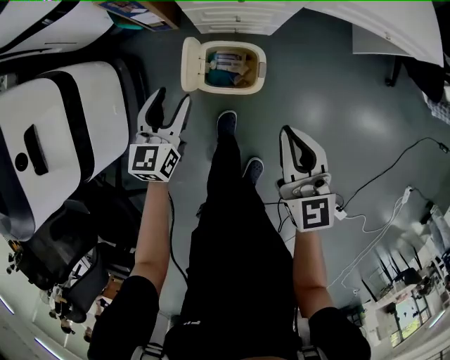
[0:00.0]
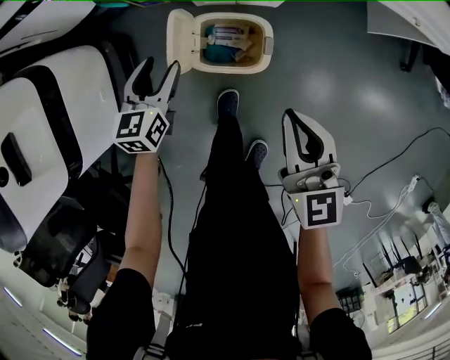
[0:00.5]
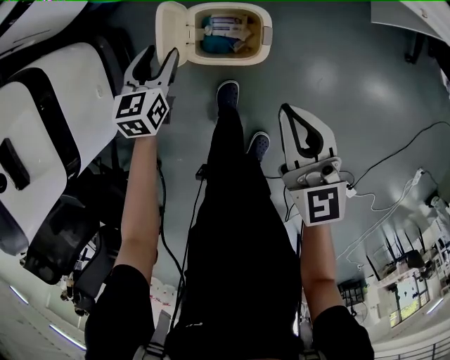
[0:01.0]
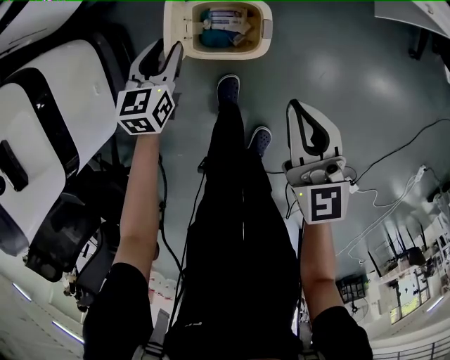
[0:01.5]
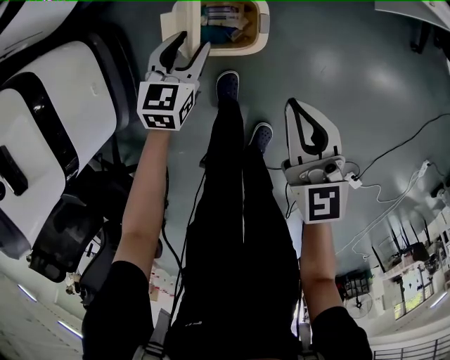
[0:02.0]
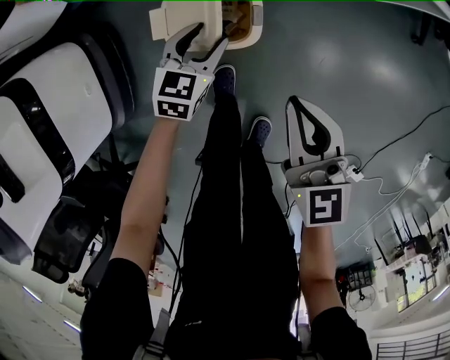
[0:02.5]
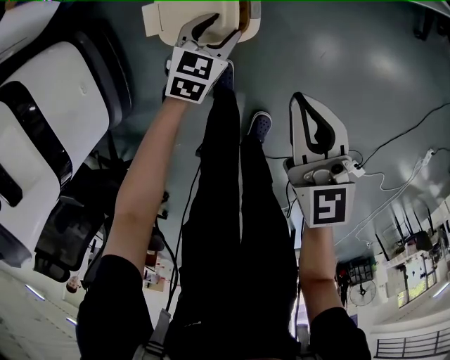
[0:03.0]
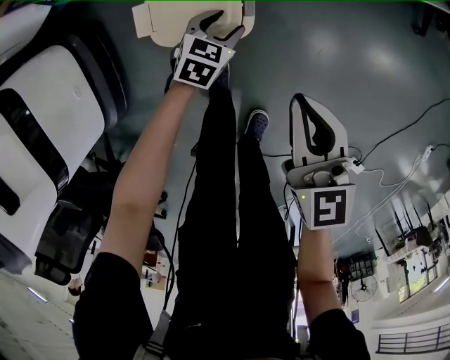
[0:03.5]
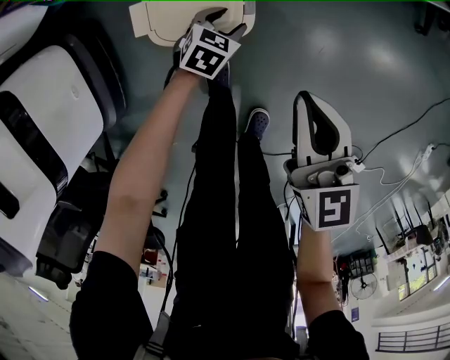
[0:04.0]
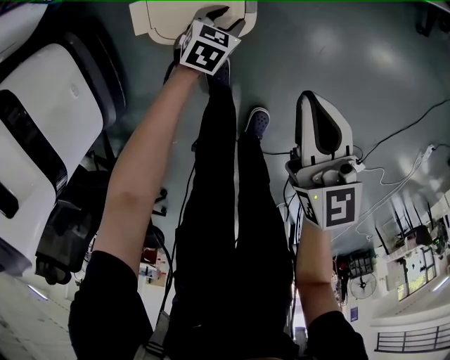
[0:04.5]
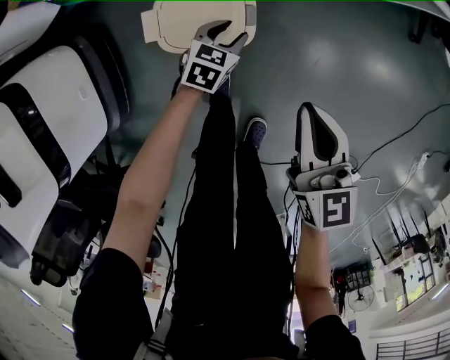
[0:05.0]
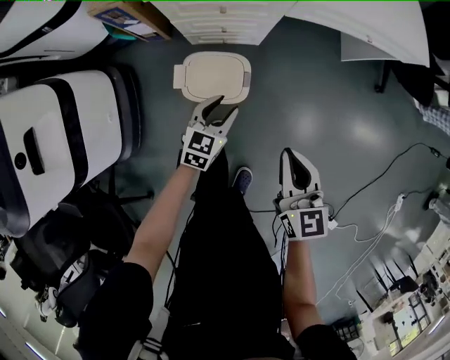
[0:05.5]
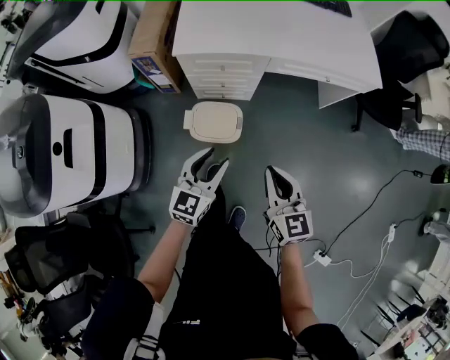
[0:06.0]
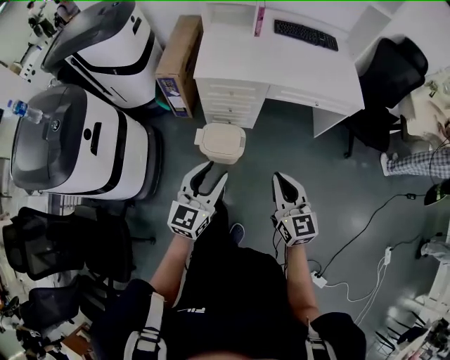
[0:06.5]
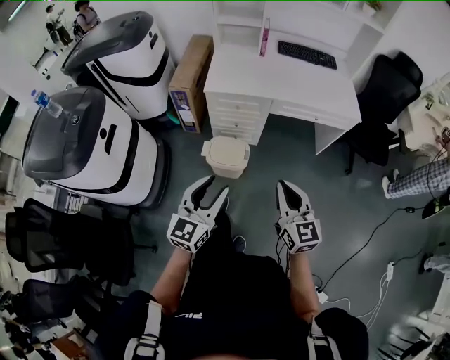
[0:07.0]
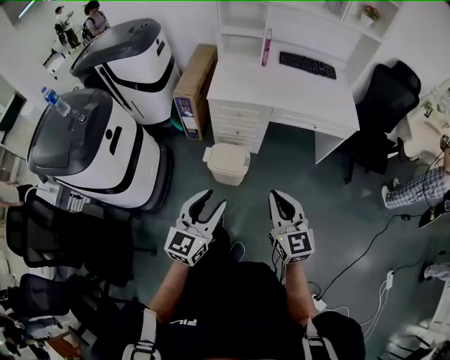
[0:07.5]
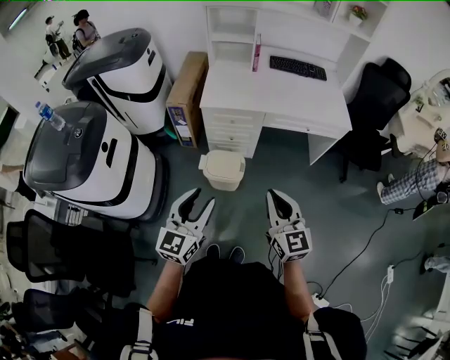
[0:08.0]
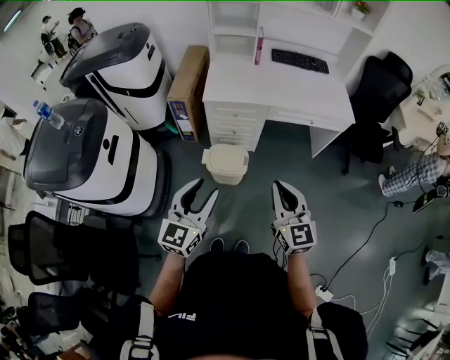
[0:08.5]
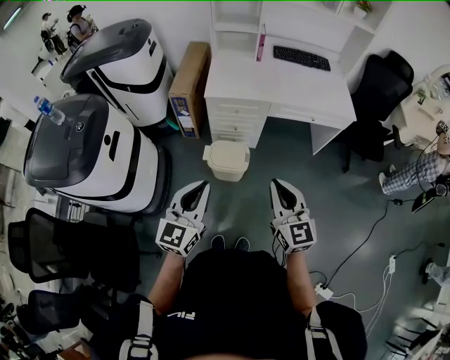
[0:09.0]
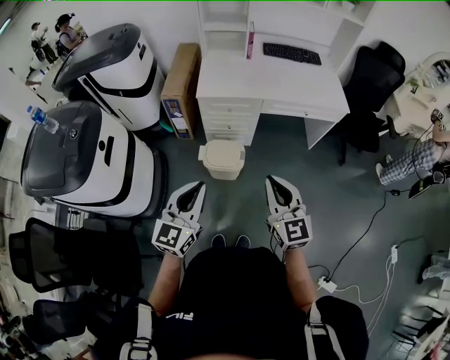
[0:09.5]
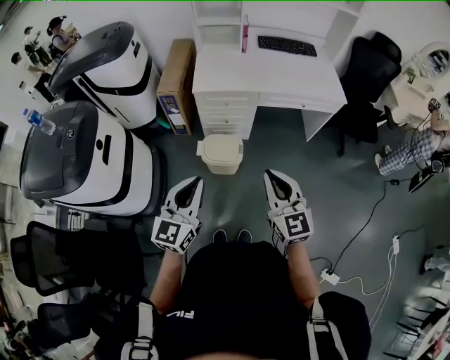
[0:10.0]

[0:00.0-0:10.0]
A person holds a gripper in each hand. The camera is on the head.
0:00.0 to 0:02.0: The right gripper heads downward, covering about 15 cm; the left gripper goes about 20 cm downward and to the right.
0:02.0 to 0:04.0: The left gripper goes roughly 20 cm downward and to the right, and rotates roughly 30 degrees; the right gripper changes place by some 5 cm.
0:04.0 to 0:06.0: The left gripper heads upward, covering about 60 cm, and tips its fingers upward by roughly 40 degrees. Meanwhile the right gripper heads upward, covering some 30 cm.
0:06.0 to 0:08.0: Both grippers travel together upward and backward, about 30 cm.
0:08.0 to 0:10.0: The left gripper closes.

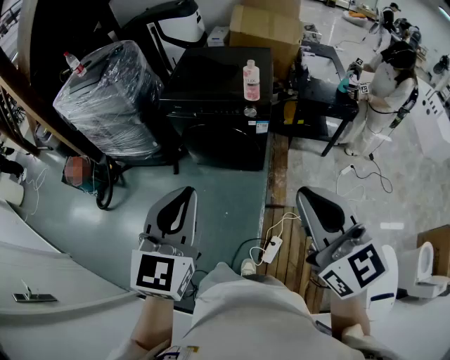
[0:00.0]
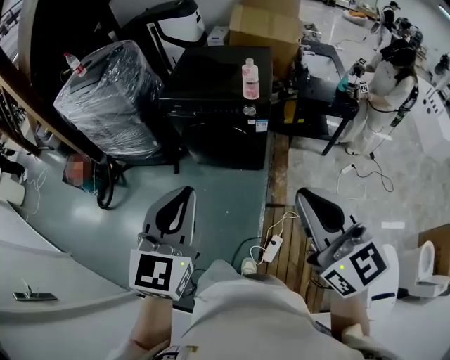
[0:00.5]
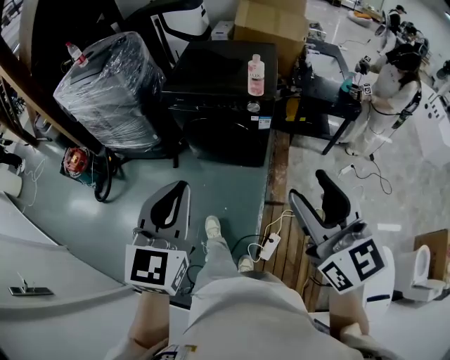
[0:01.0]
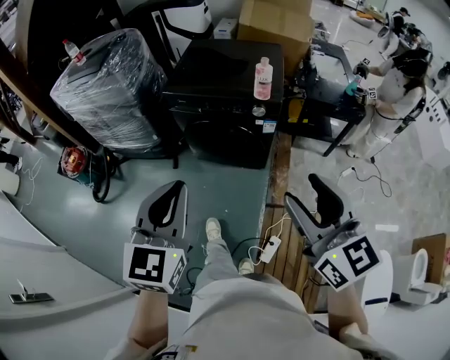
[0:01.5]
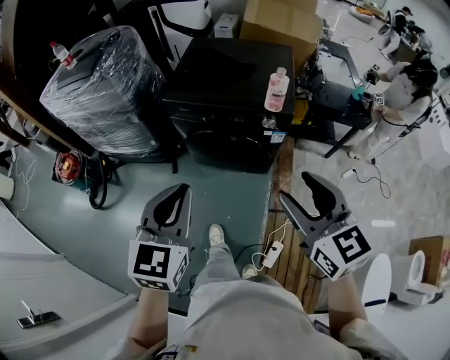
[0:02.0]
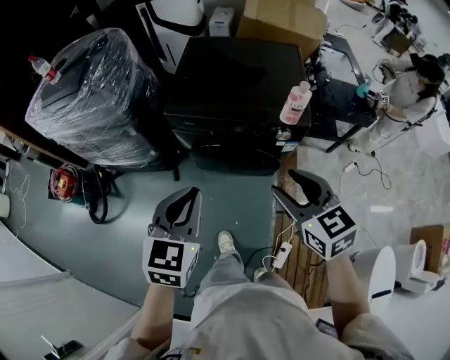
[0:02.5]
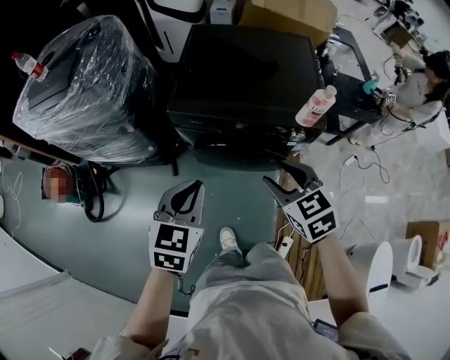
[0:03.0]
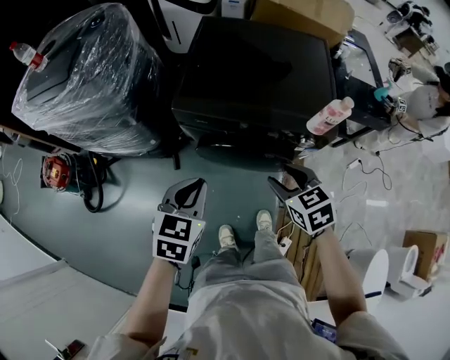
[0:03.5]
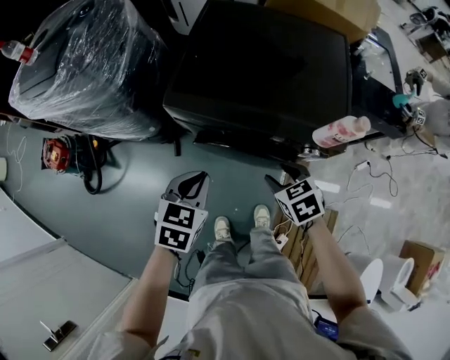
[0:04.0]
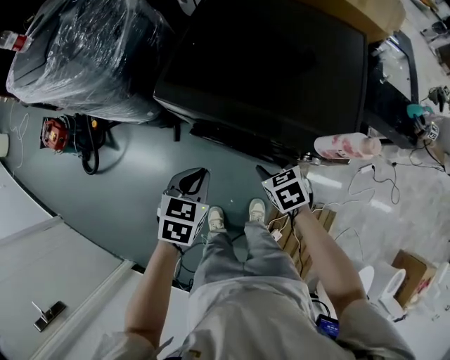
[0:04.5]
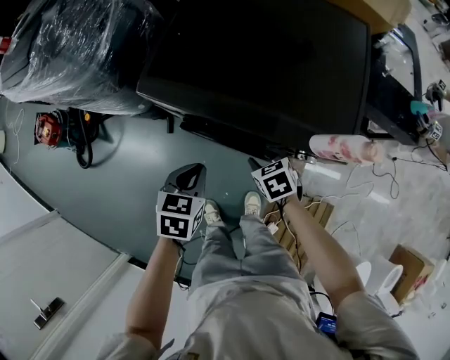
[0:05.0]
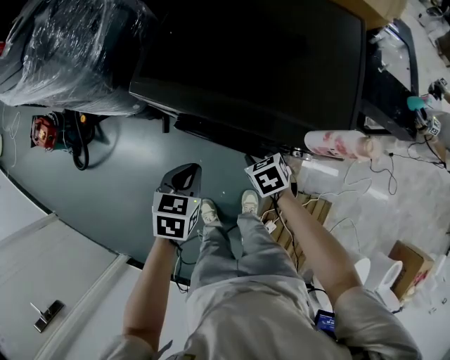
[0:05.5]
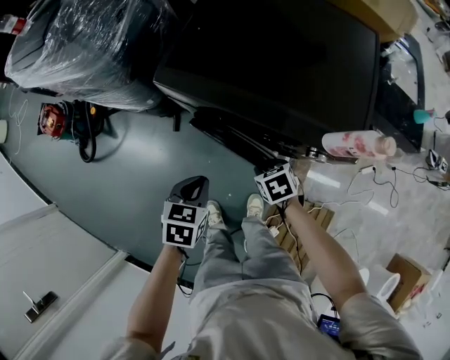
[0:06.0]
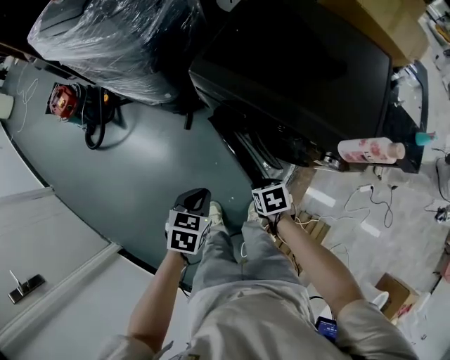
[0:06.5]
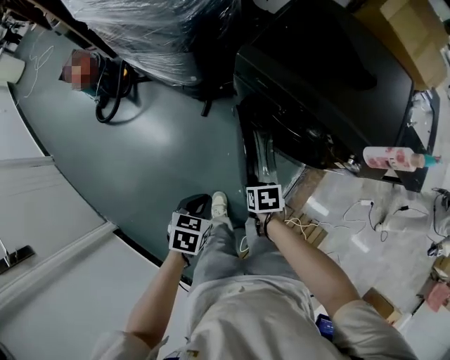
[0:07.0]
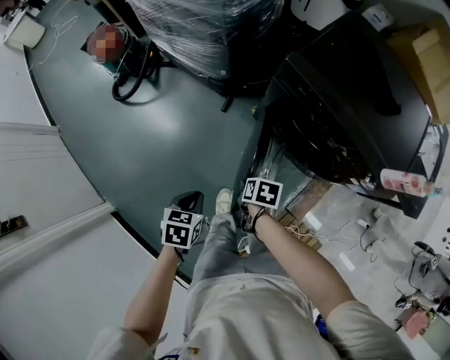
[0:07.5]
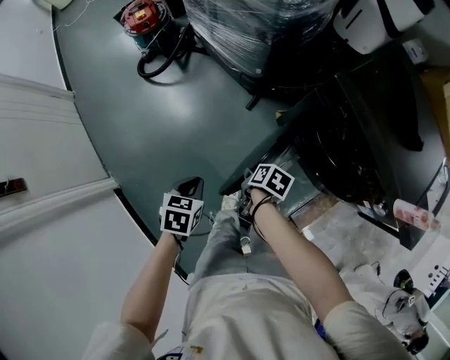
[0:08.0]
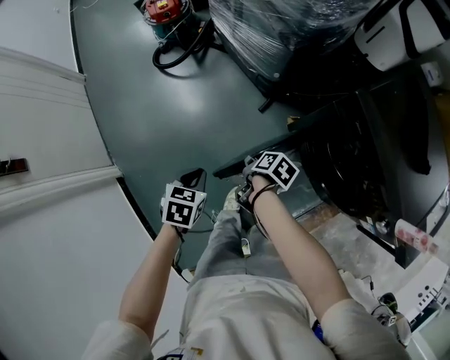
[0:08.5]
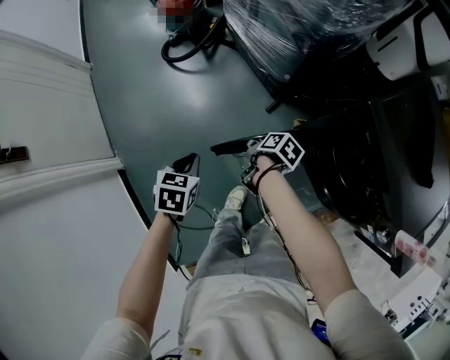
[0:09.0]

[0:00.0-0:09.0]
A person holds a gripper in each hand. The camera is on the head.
0:00.0 to 0:02.0: The left gripper shifts approximately 20 cm forward and to the left; the right gripper is displaced forward and downward by approximately 20 cm, and opens up.
0:02.0 to 0:04.5: The right gripper goes about 50 cm downward and forward, and points its fingers about 40 degrees further downward, while the left gripper goes some 40 cm forward and downward, and tips its fingers downward by roughly 30 degrees.
0:04.5 to 0:07.0: The right gripper is displaced to the left, backward and downward by approximately 25 cm, and rotates approximately 20 degrees. Meanwhile the left gripper is displaced backward, to the left and downward by approximately 25 cm, and changes its angle by some 20 degrees.
0:07.0 to 0:09.0: The left gripper shifts by roughly 30 cm, and swivels approximately 30 degrees; the right gripper changes place by approximately 30 cm, and rotates about 30 degrees.

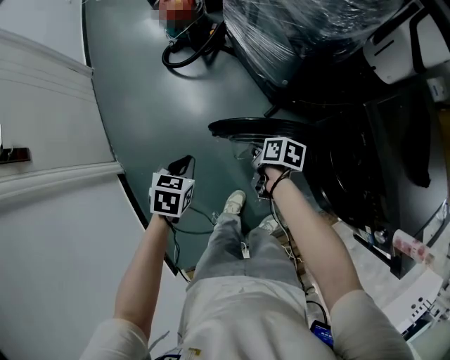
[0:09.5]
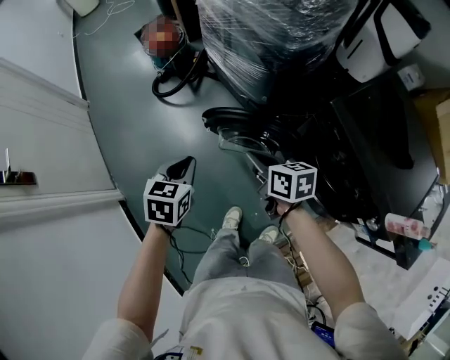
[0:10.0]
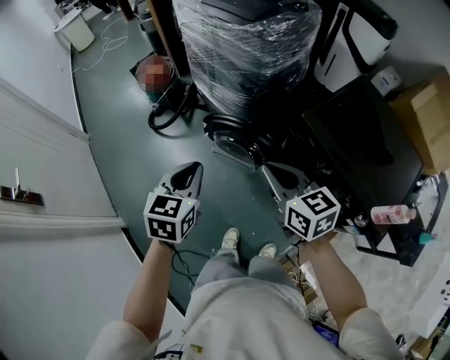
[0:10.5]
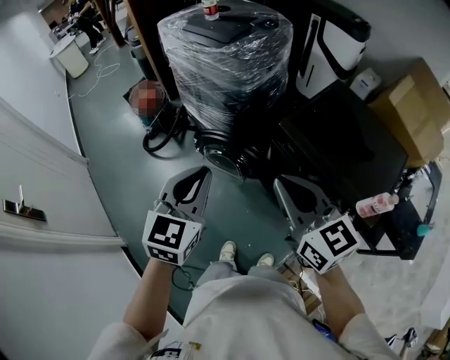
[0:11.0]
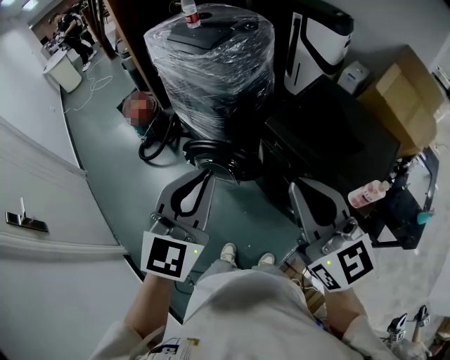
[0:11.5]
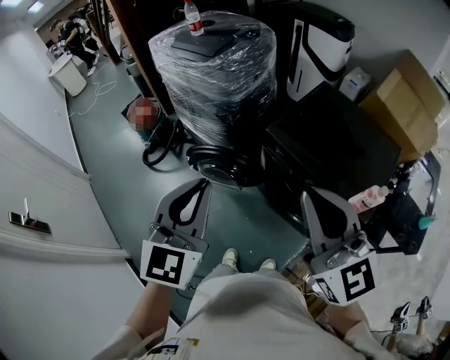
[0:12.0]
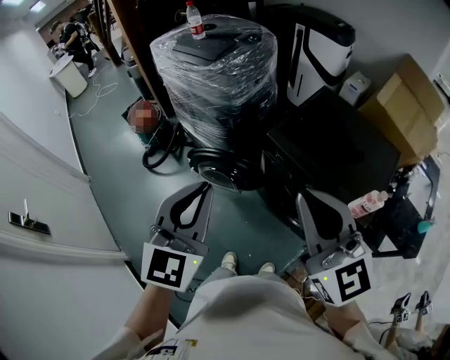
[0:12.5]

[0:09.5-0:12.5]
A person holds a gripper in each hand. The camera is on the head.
0:09.5 to 0:11.0: The right gripper heads upward, covering roughly 50 cm, and tilts its fingers approximately 40 degrees upward, while the left gripper travels upward and to the right by approximately 40 cm, and points its fingers about 40 degrees further upward.
0:11.0 to 0:12.5: Both grippers travel together upward, backward and to the right, roughly 10 cm. The right gripper changes its angle by approximately 20 degrees.

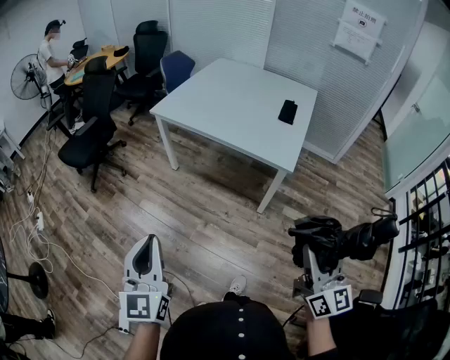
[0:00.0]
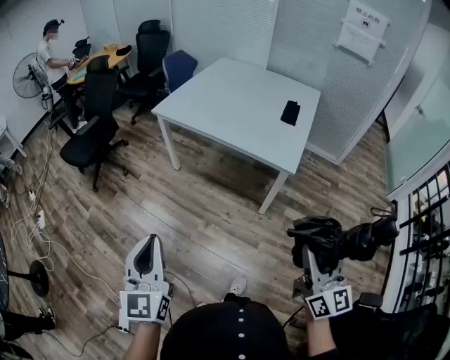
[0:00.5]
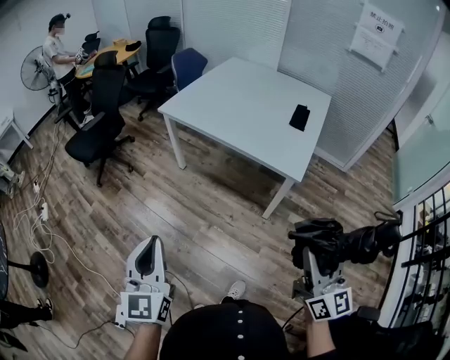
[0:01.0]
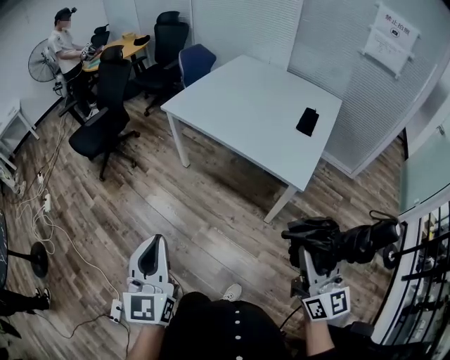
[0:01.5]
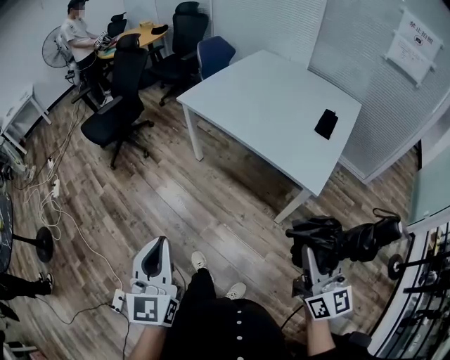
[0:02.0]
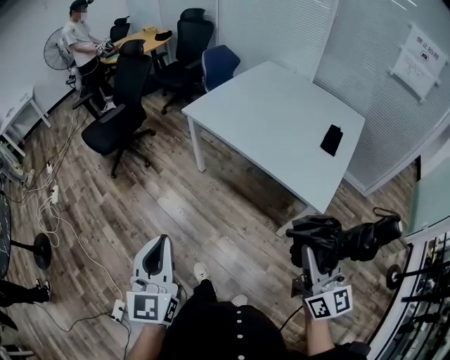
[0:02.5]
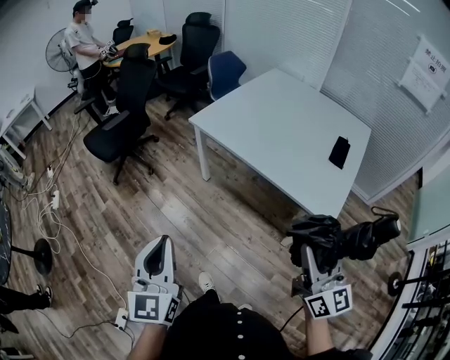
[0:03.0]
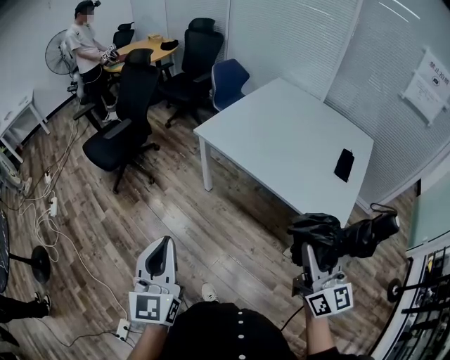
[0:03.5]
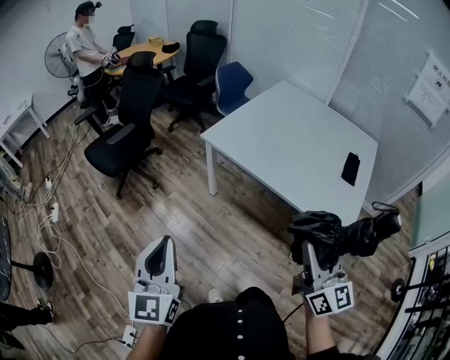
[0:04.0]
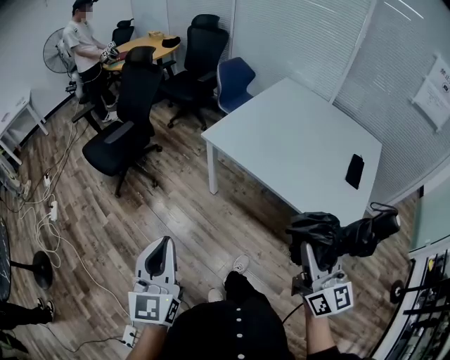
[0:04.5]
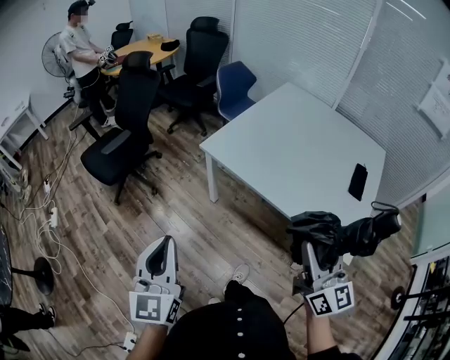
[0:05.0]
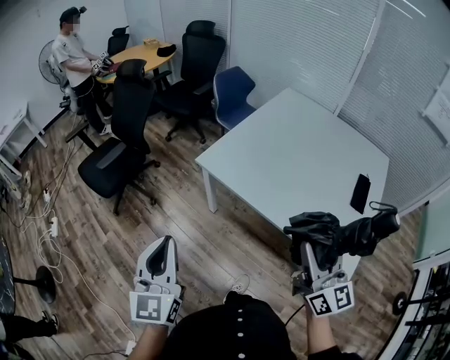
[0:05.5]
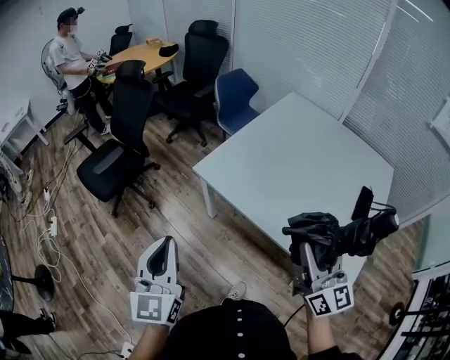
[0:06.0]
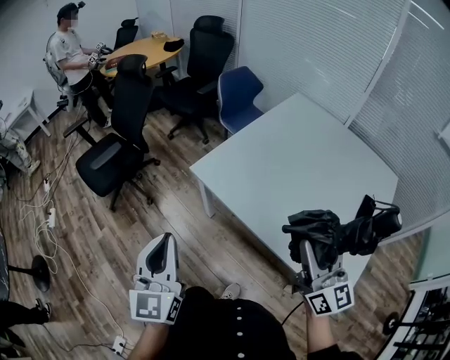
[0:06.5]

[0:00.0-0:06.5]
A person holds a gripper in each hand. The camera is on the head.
0:00.0 to 0:02.0: The right gripper is displaced forward by approximately 15 cm; the left gripper goes some 5 cm forward.
0:02.0 to 0:04.5: The two grippers go roughly 30 cm forward and to the left.
0:04.5 to 0:06.5: Both grippers travel together forward, some 25 cm.
